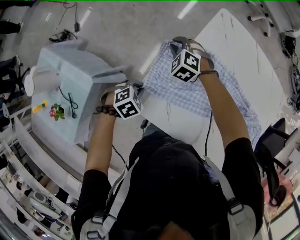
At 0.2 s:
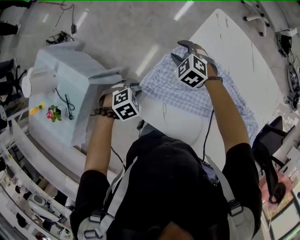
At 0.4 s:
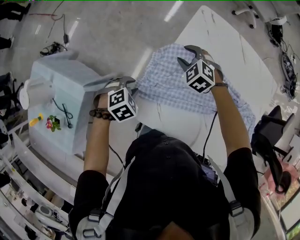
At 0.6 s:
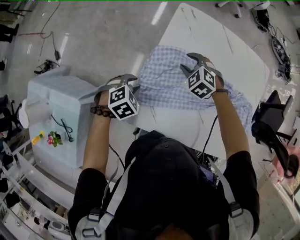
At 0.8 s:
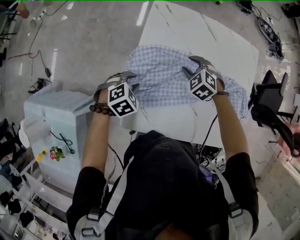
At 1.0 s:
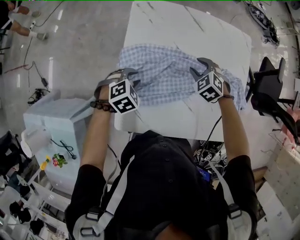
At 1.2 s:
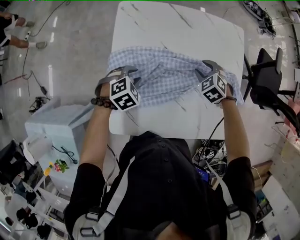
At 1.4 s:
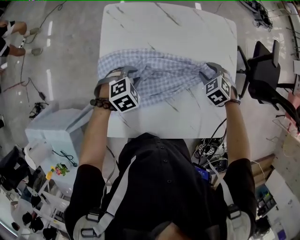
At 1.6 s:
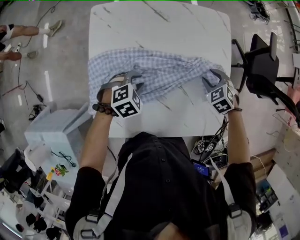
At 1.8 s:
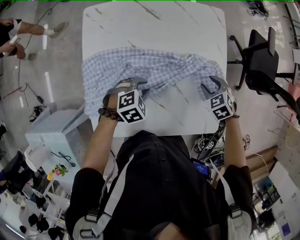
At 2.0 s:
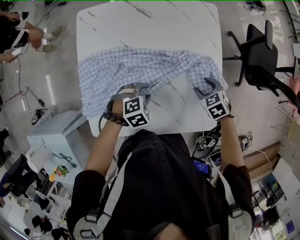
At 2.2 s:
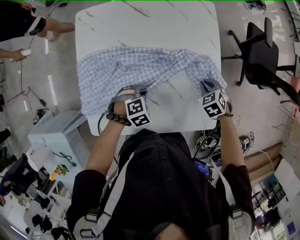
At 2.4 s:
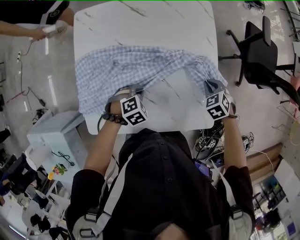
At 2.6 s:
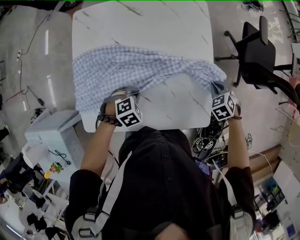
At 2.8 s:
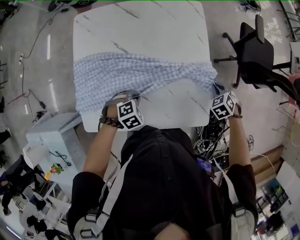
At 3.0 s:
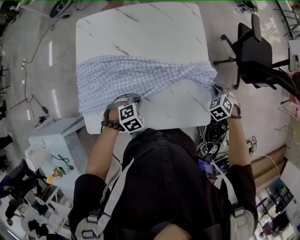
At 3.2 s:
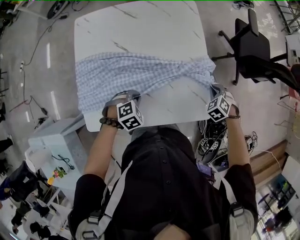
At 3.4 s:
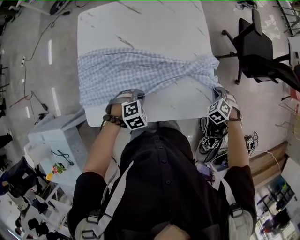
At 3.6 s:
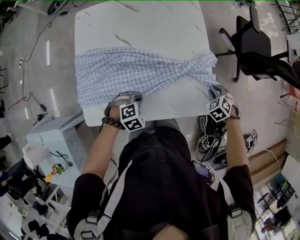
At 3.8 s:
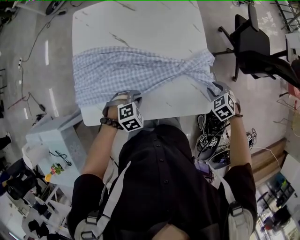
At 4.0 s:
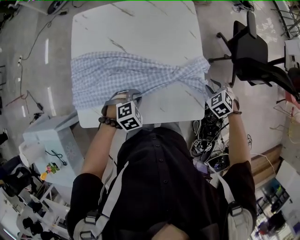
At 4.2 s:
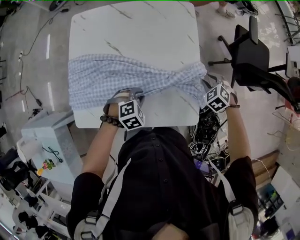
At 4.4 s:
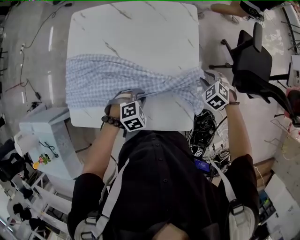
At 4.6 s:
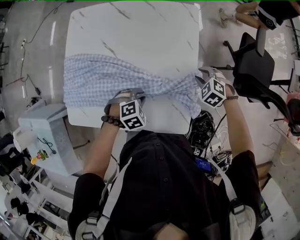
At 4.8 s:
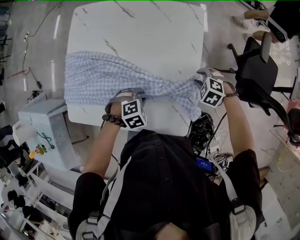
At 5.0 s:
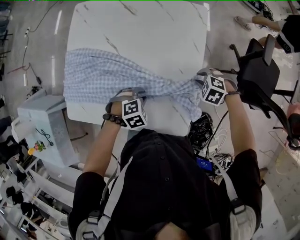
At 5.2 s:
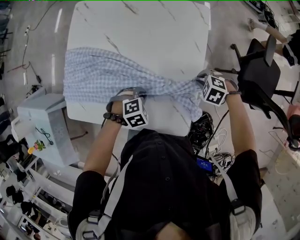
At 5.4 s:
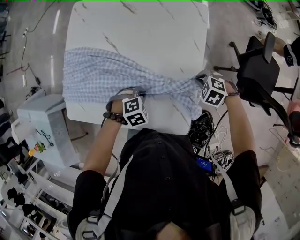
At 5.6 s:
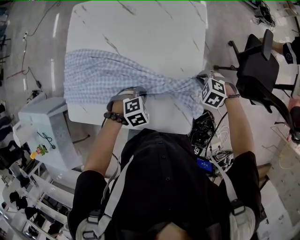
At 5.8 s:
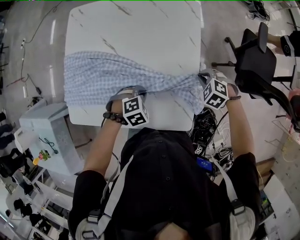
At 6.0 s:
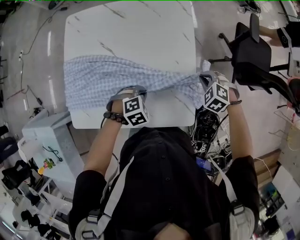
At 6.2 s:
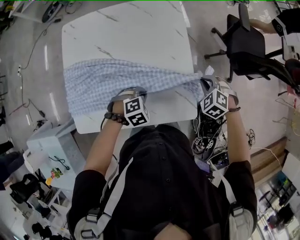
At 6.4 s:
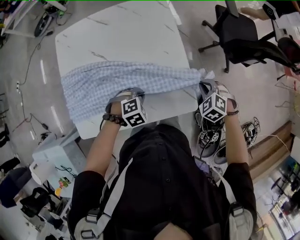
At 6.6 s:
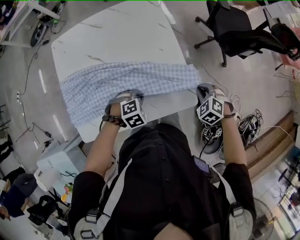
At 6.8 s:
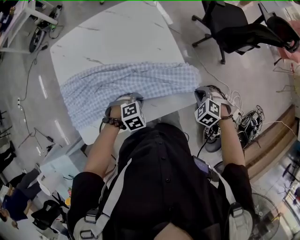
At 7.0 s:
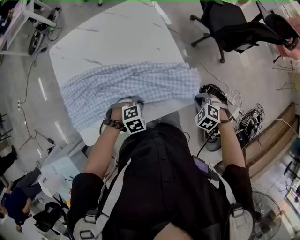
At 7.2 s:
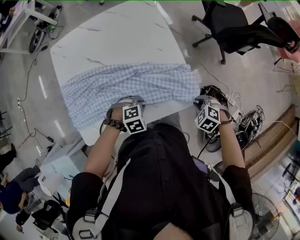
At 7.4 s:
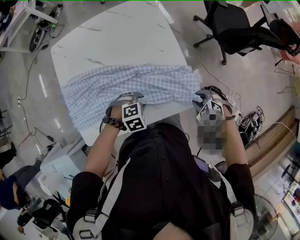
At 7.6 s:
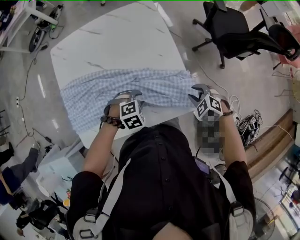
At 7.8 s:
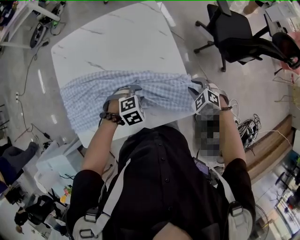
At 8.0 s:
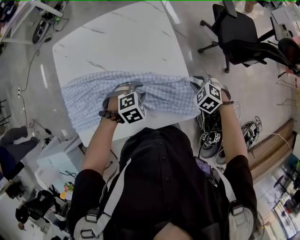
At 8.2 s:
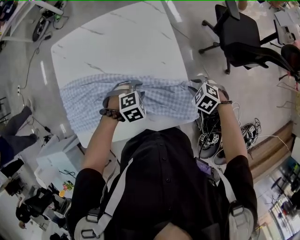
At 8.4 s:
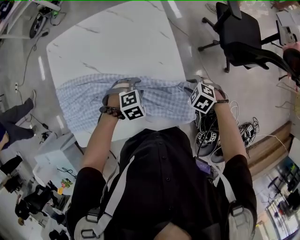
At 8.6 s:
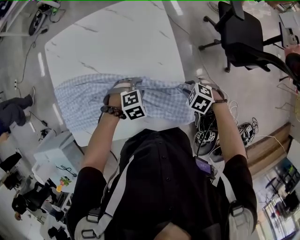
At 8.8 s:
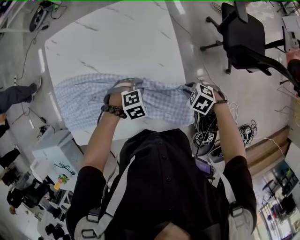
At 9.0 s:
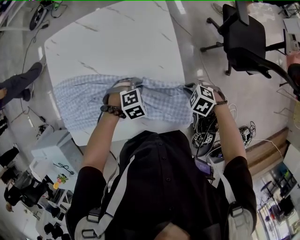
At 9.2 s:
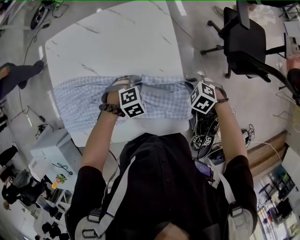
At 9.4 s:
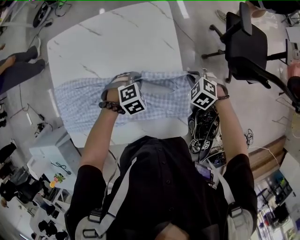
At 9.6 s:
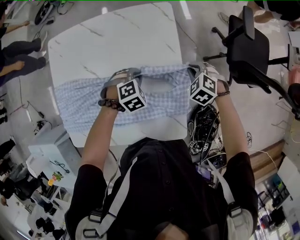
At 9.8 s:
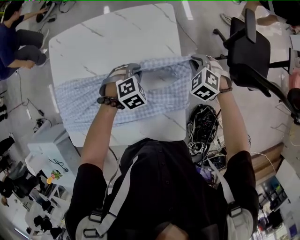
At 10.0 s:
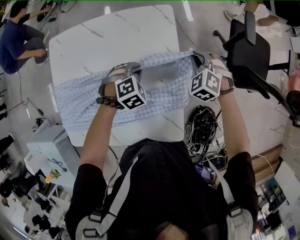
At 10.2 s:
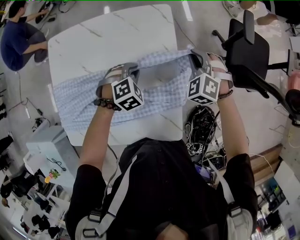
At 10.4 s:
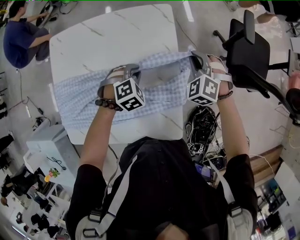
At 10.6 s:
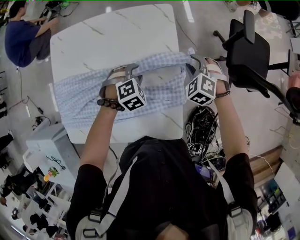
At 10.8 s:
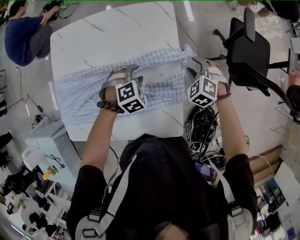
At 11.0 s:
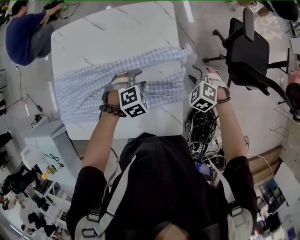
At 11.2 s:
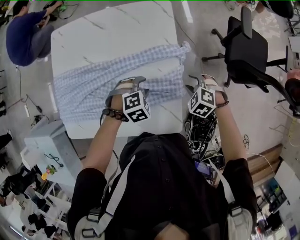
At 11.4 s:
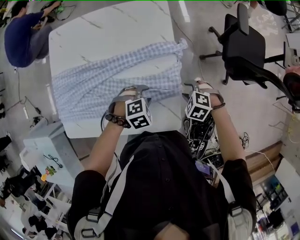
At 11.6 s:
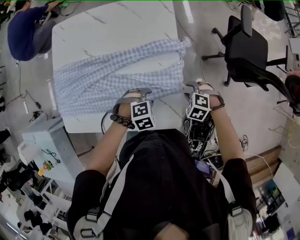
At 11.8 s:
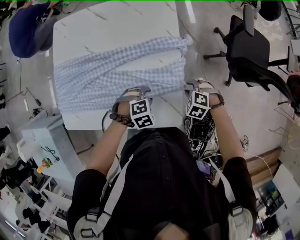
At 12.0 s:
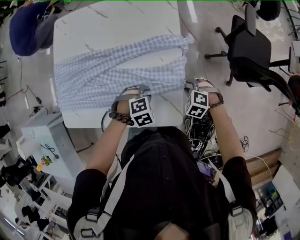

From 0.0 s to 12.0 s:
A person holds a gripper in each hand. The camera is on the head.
From 0.0 s to 1.6 s: The right gripper shifts by some 60 cm, and rolls clockwise, seen from behind, by some 40 degrees. Meanwhile the left gripper changes place by about 35 cm, and rotates roughly 40 degrees.
From 1.6 s to 3.0 s: The right gripper heads to the right, covering some 20 cm, and closes up; the left gripper shifts about 15 cm to the right and backward.
From 3.0 s to 4.4 s: The right gripper is displaced forward by some 10 cm. The left gripper goes some 10 cm to the right and forward.
From 6.0 s to 7.6 s: The right gripper changes its angle by some 20 degrees.
From 7.6 s to 9.0 s: The right gripper moves about 10 cm, while the left gripper shifts by approximately 15 cm.
From 9.0 s to 10.4 s: The left gripper shifts by approximately 15 cm, while the right gripper changes place by about 25 cm, and turns by about 50 degrees.
From 10.4 s to 12.0 s: The right gripper shifts by roughly 25 cm, and swivels about 30 degrees. Meanwhile the left gripper ends up approximately 20 cm from where it was.

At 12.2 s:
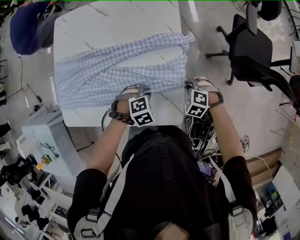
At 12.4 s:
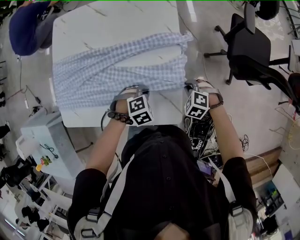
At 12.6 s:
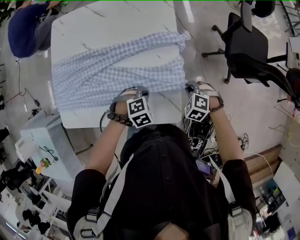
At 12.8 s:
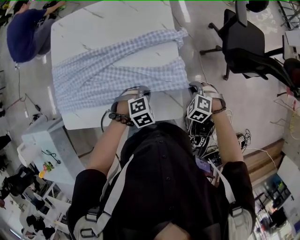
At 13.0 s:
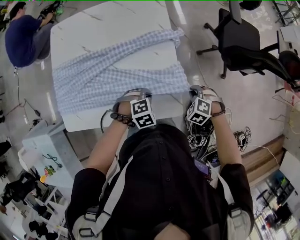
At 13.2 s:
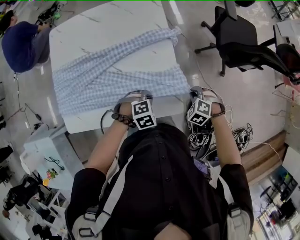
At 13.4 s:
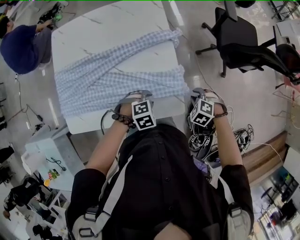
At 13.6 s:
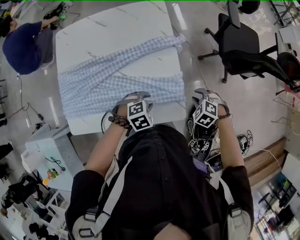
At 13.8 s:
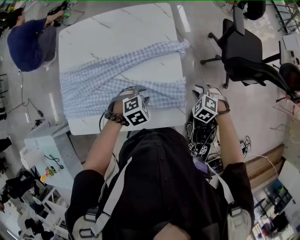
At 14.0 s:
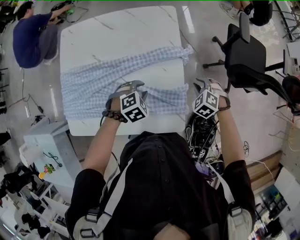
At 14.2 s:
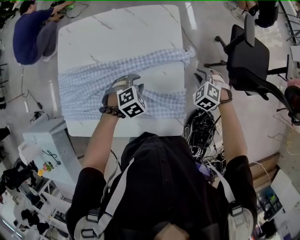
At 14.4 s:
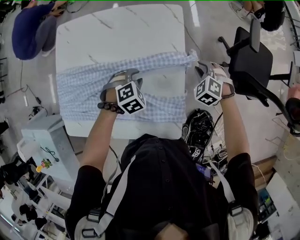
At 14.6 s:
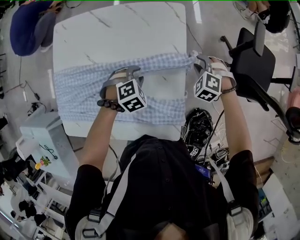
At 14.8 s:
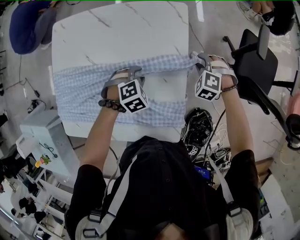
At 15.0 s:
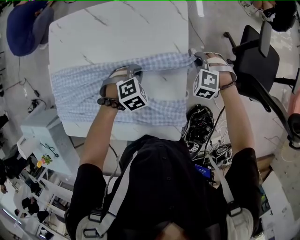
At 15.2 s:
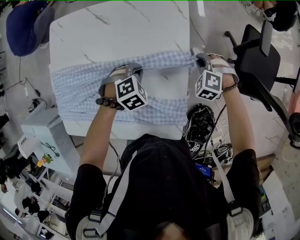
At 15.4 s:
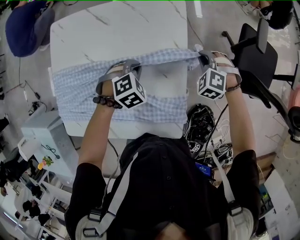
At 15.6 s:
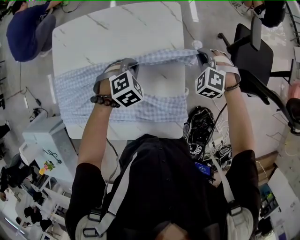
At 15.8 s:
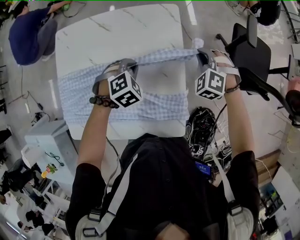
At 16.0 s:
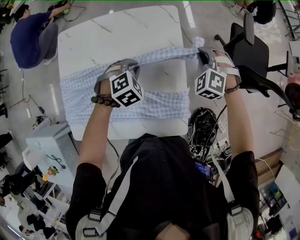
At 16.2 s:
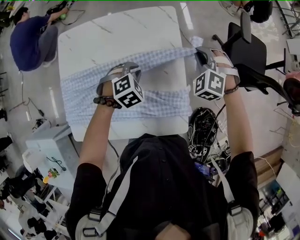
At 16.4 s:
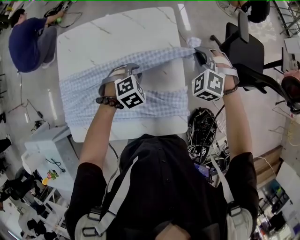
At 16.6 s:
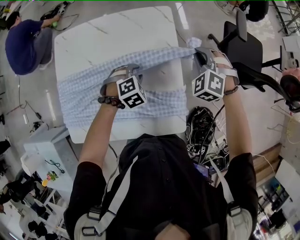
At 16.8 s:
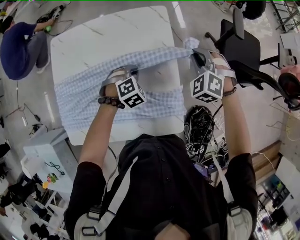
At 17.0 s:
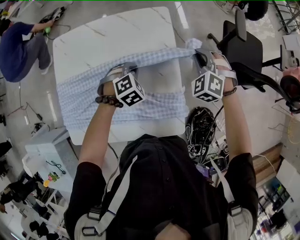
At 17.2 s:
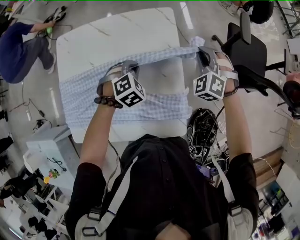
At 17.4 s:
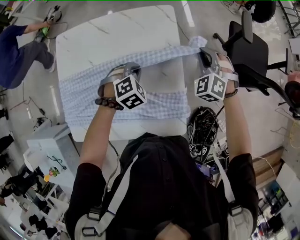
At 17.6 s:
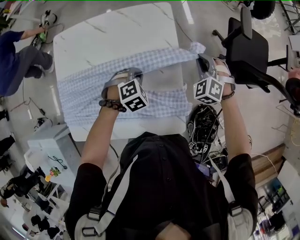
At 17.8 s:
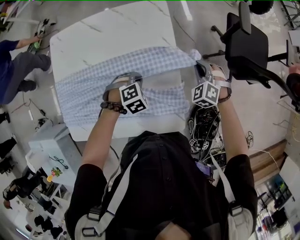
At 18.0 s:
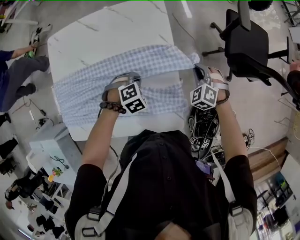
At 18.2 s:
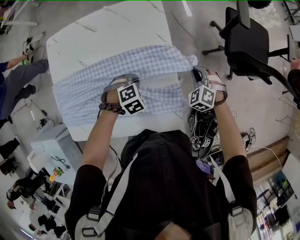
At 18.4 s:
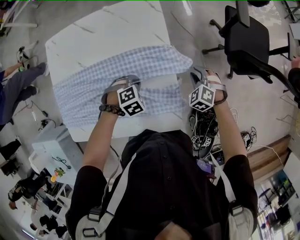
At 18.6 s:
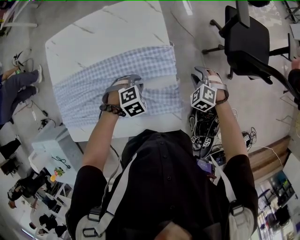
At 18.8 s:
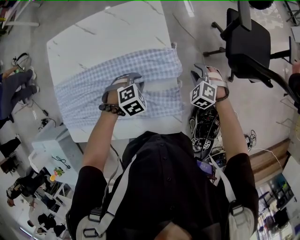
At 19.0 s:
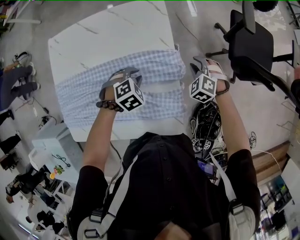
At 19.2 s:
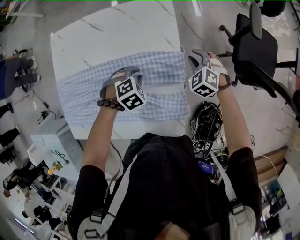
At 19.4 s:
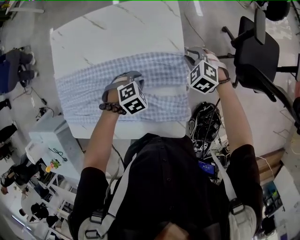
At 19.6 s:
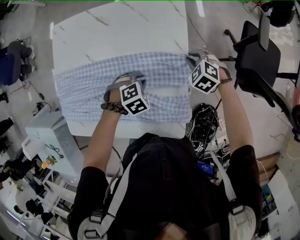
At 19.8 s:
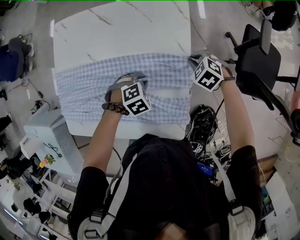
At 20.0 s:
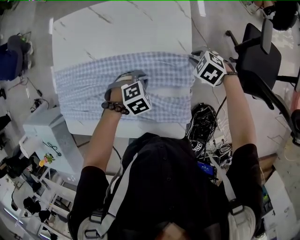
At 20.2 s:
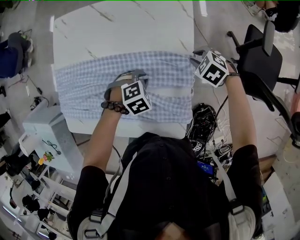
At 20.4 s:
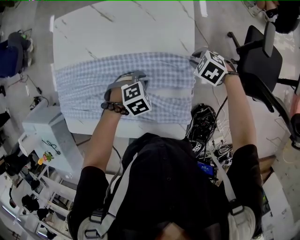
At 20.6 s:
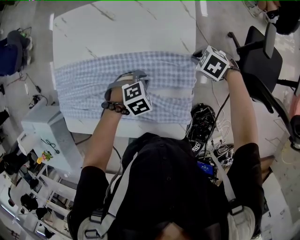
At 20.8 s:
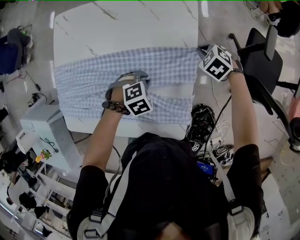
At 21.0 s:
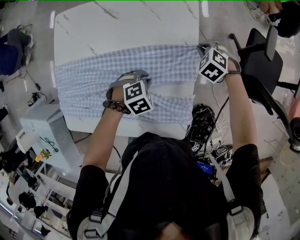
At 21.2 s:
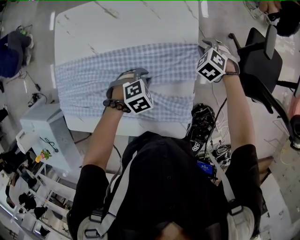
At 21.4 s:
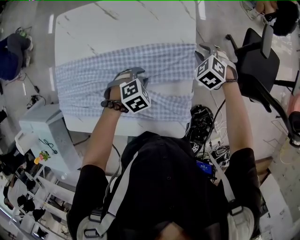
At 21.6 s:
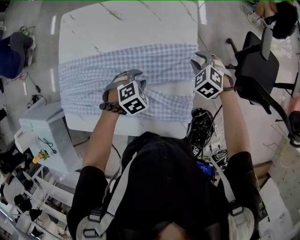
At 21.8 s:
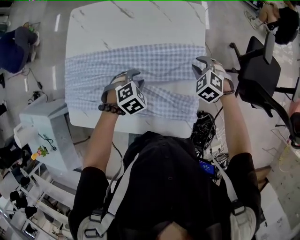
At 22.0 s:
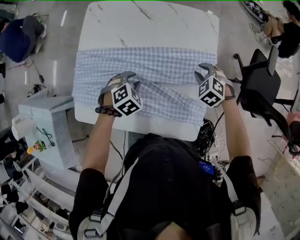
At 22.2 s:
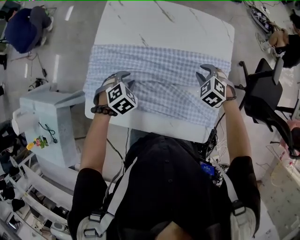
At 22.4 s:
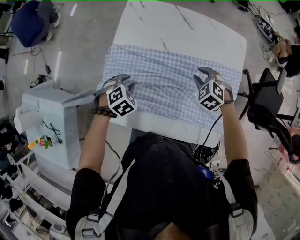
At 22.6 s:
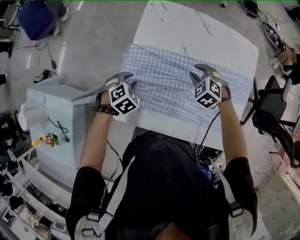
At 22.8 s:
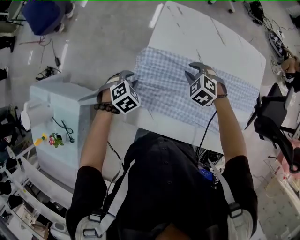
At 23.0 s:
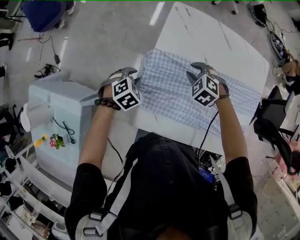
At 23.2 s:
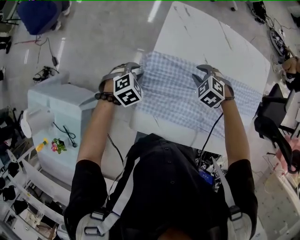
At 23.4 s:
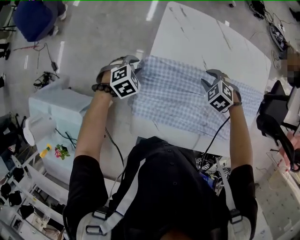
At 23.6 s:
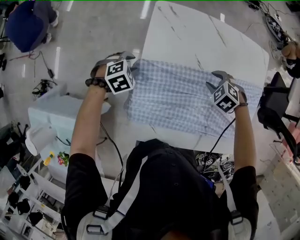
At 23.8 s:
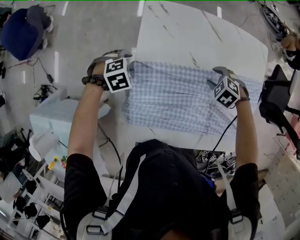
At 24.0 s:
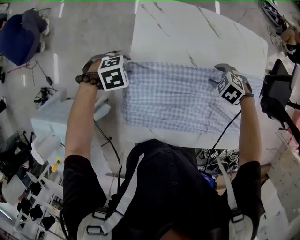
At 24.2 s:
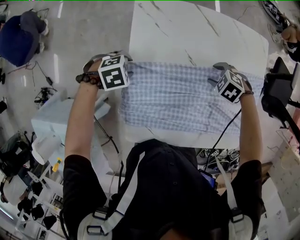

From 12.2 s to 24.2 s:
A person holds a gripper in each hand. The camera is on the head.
From 12.2 s to 13.8 s: The left gripper moves some 5 cm. The right gripper shifts some 5 cm upward.
From 13.8 s to 15.2 s: Both grippers move forward, some 20 cm. The right gripper changes its angle by some 20 degrees.
From 15.2 s to 16.6 s: The right gripper travels upward by about 15 cm, and changes its angle by roughly 20 degrees.
From 16.6 s to 18.2 s: The left gripper shifts roughly 5 cm downward; the right gripper moves downward, approximately 15 cm.
From 18.2 s to 19.8 s: The right gripper shifts by about 15 cm, and changes its angle by roughly 30 degrees.
From 19.8 s to 21.2 s: The right gripper shifts by some 5 cm.
From 21.2 s to 22.6 s: The pair of grippers is taken about 40 cm. The left gripper swivels approximately 20 degrees.
From 22.6 s to 24.2 s: The right gripper shifts by about 10 cm, and turns by approximately 30 degrees. The left gripper ends up about 15 cm from where it was, and rotates approximately 40 degrees.
